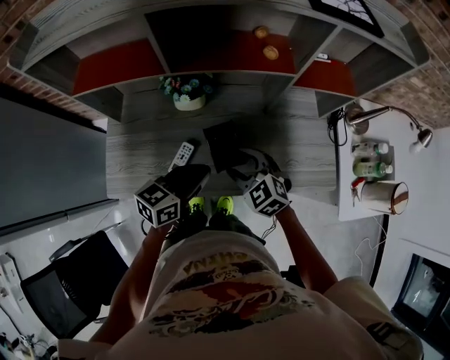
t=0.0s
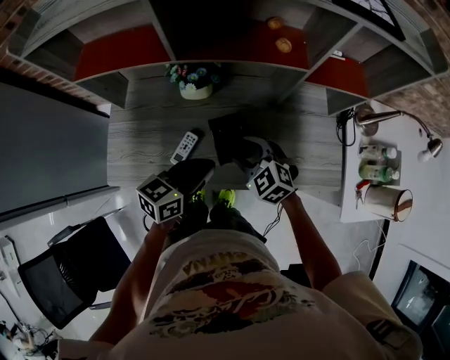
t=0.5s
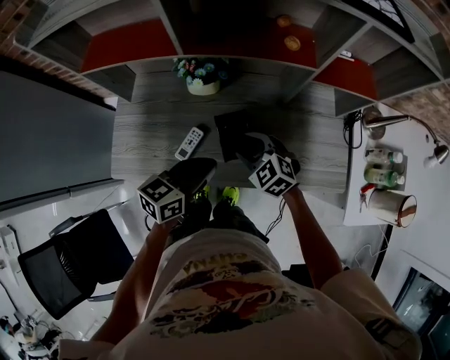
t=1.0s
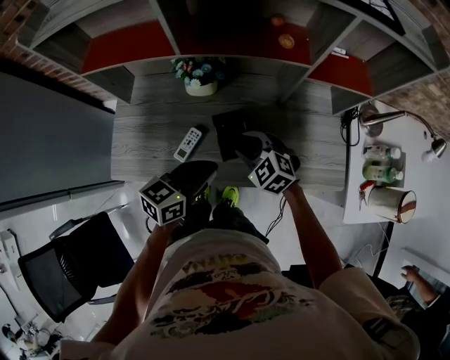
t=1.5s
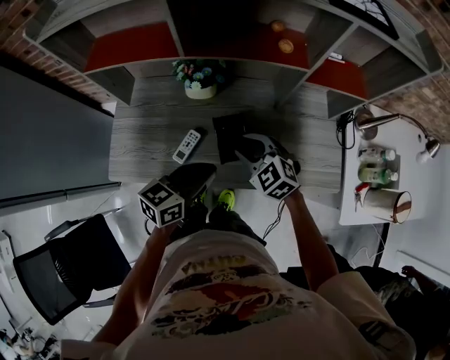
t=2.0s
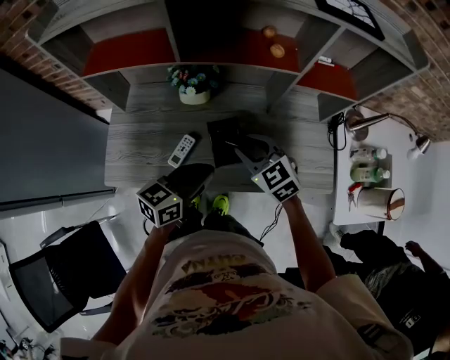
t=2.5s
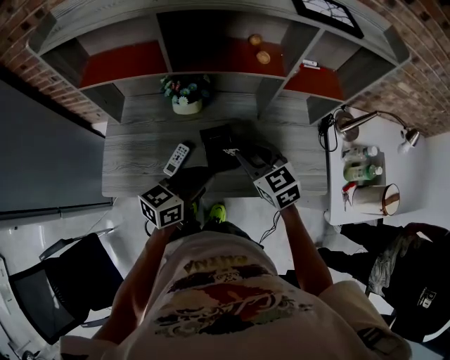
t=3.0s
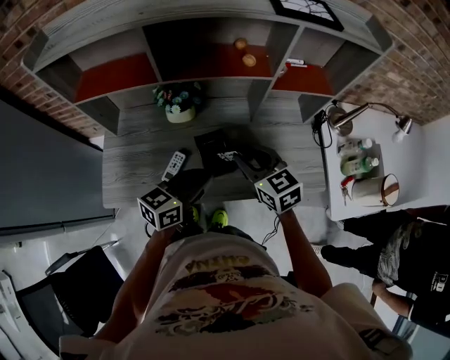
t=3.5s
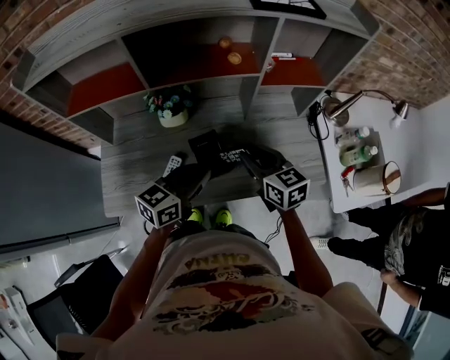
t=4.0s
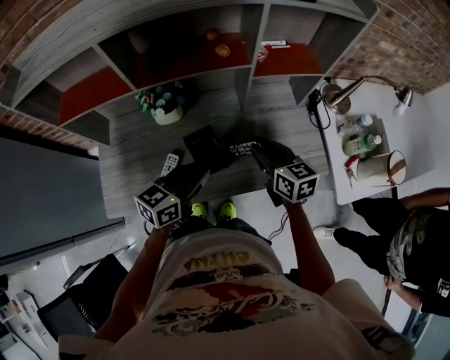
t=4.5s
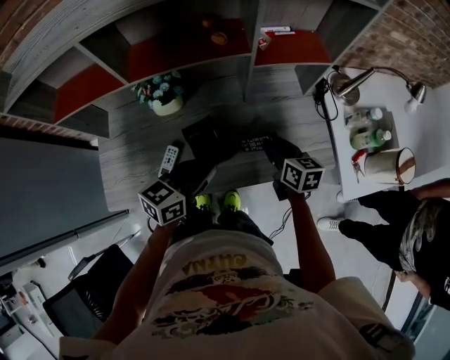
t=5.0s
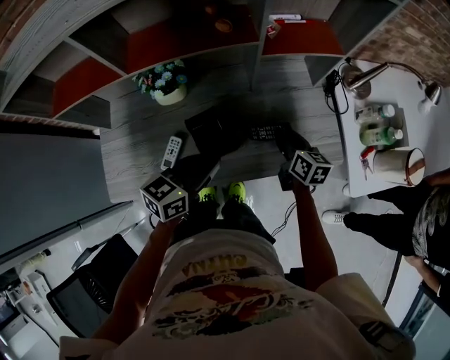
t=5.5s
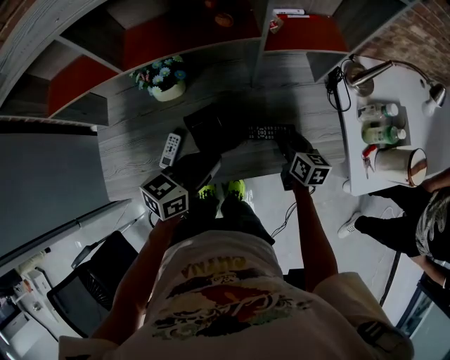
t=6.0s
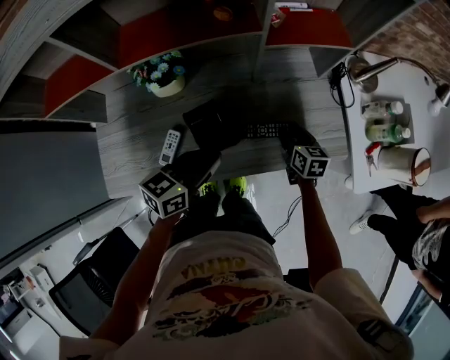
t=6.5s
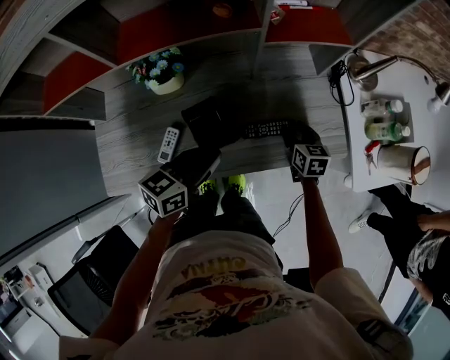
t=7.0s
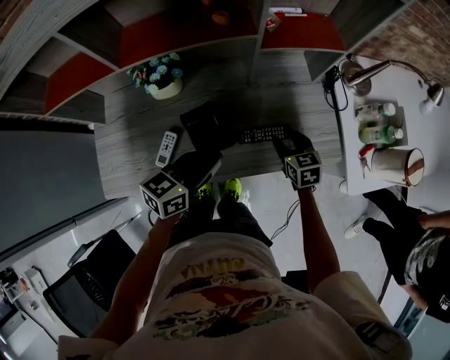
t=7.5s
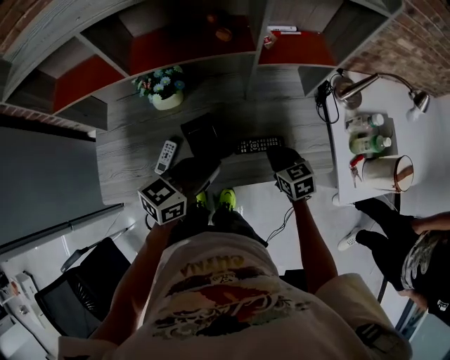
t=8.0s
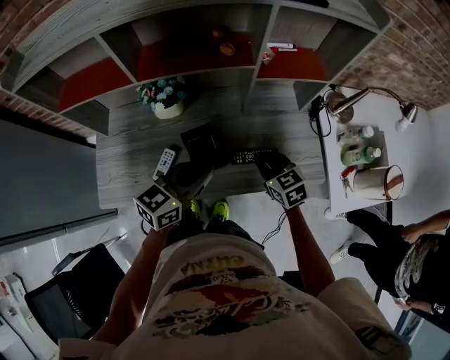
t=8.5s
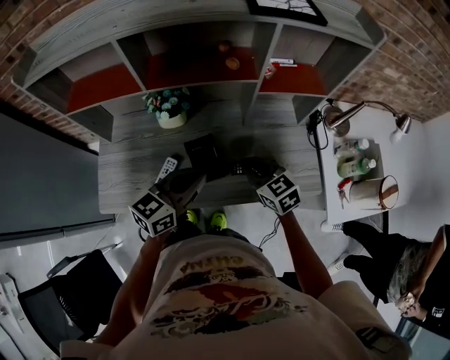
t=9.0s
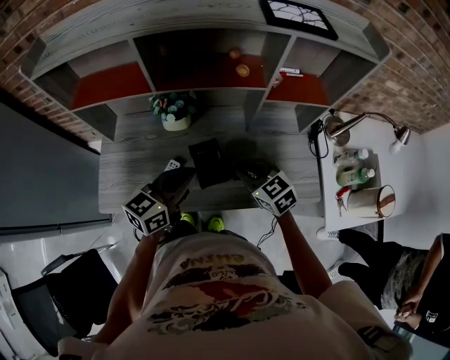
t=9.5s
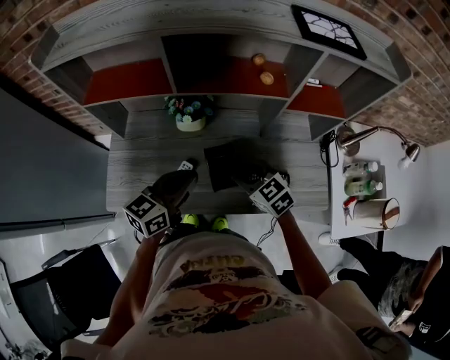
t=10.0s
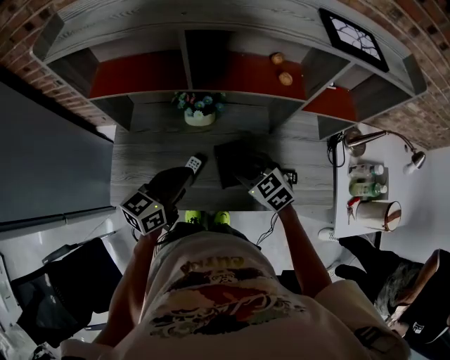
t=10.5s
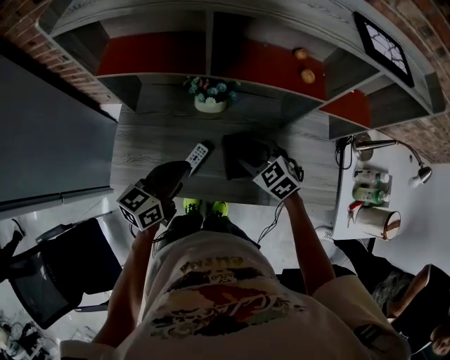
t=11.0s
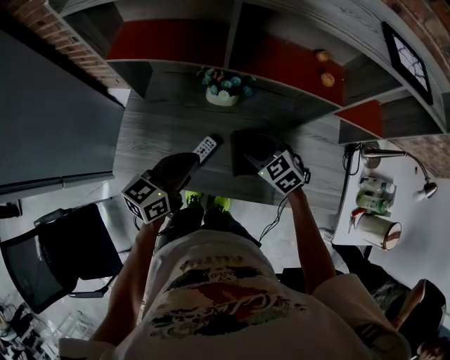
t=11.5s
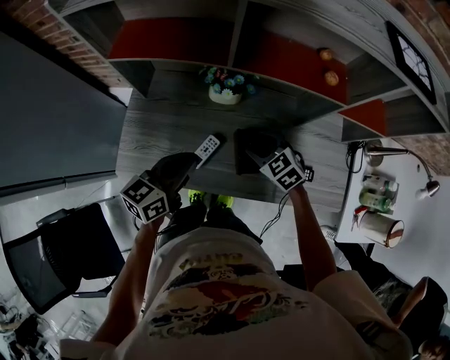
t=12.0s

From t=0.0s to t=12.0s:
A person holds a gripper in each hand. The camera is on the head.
From t=0.0s to t=2.0s: The grippers stay close to where they were, moving slightly.
From t=2.0s to t=4.0s: The left gripper shifts by roughly 5 cm, while the right gripper travels to the right and upward by roughly 10 cm, and twists approximately 40 degrees clockwise, seen from behind.
From t=4.0s to t=6.0s: The right gripper travels downward and to the right by some 20 cm, and swivels roughly 30 degrees. The left gripper travels downward by some 5 cm.
From t=6.0s to t=8.0s: The right gripper swivels some 30 degrees, and closes up.
From t=8.0s to t=10.0s: The left gripper is displaced to the left by roughly 15 cm, while the right gripper goes some 20 cm to the left and upward, changes its angle by about 30 degrees, and opens up.
From t=10.0s to t=12.0s: The left gripper shifts about 10 cm to the left. Meanwhile the right gripper is displaced downward and forward by approximately 10 cm.

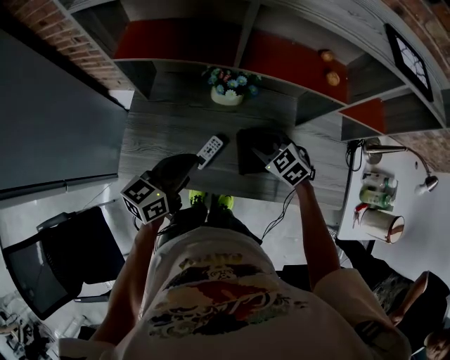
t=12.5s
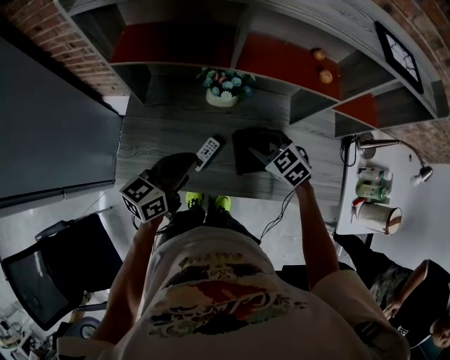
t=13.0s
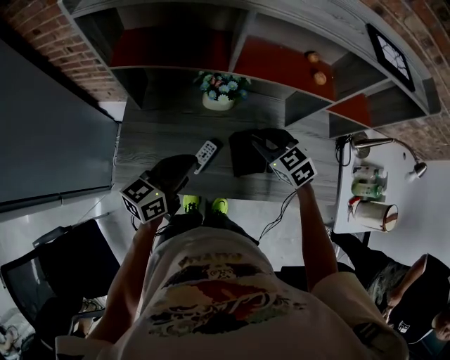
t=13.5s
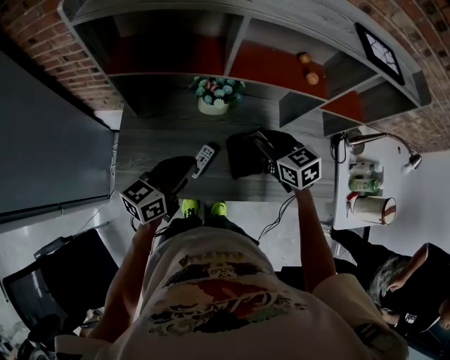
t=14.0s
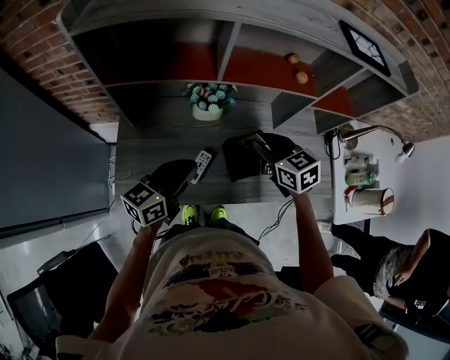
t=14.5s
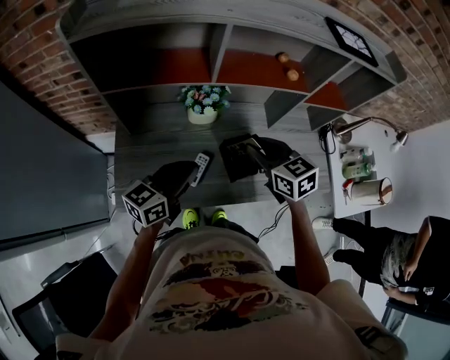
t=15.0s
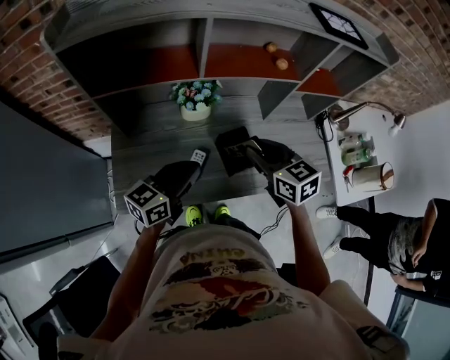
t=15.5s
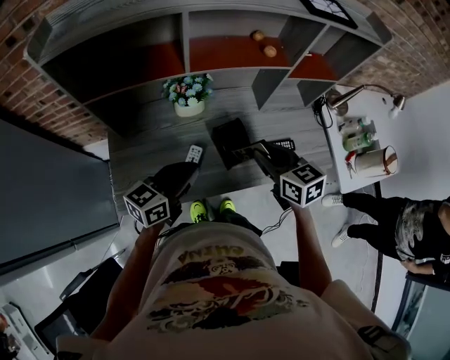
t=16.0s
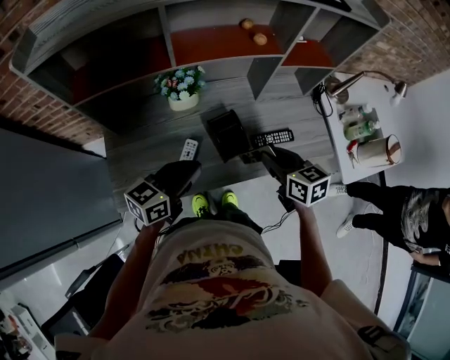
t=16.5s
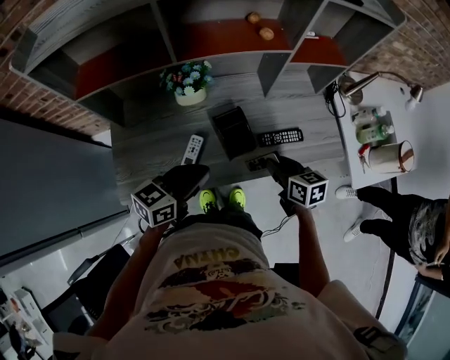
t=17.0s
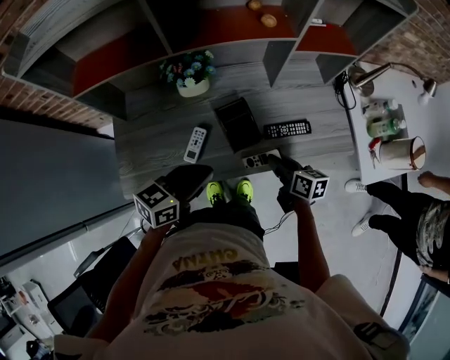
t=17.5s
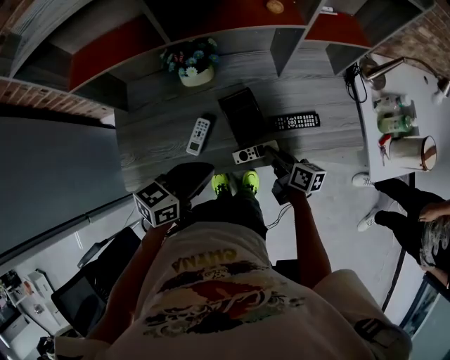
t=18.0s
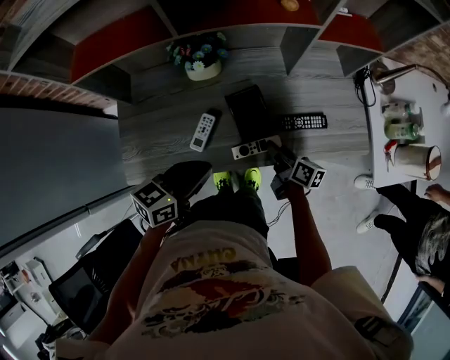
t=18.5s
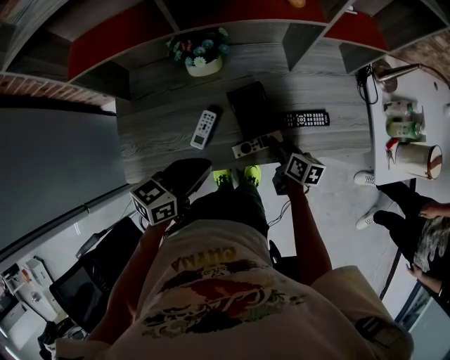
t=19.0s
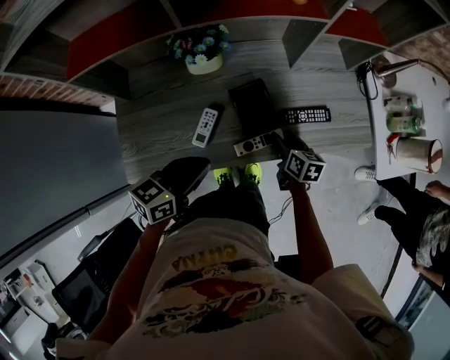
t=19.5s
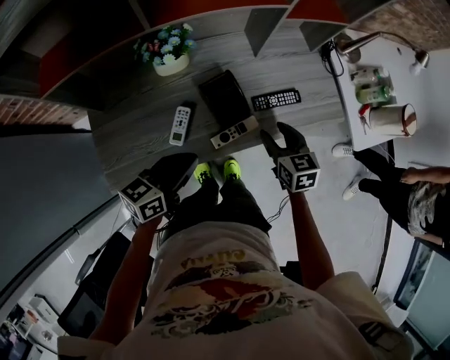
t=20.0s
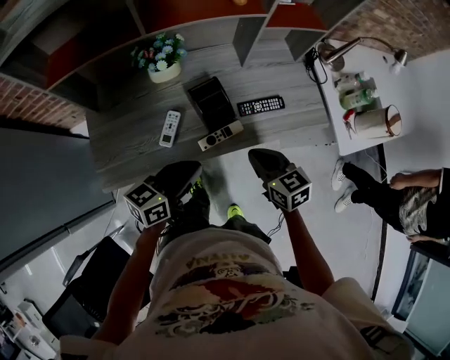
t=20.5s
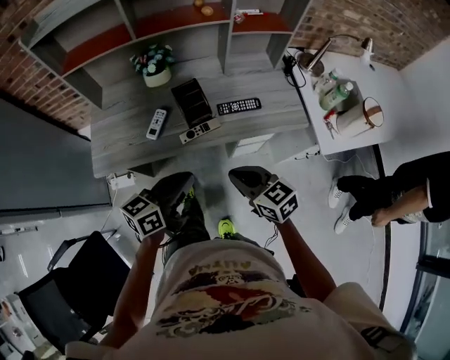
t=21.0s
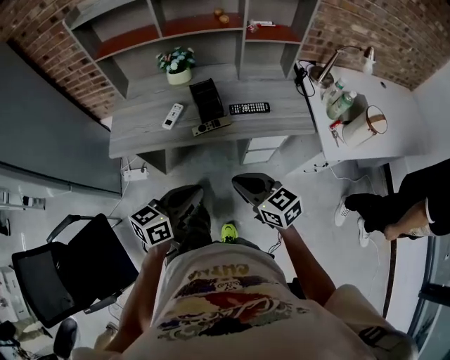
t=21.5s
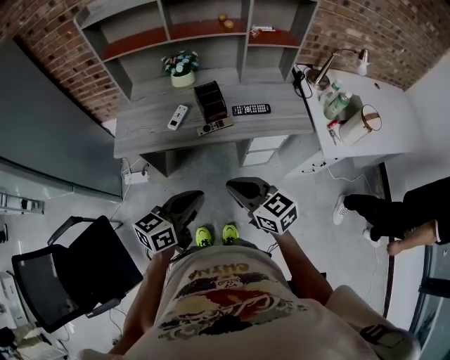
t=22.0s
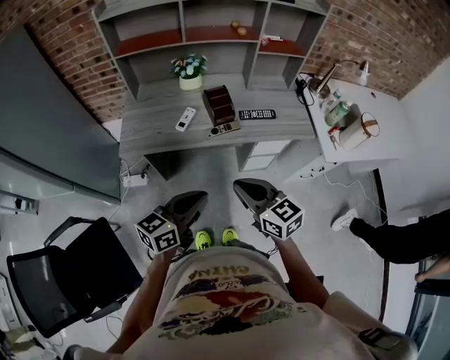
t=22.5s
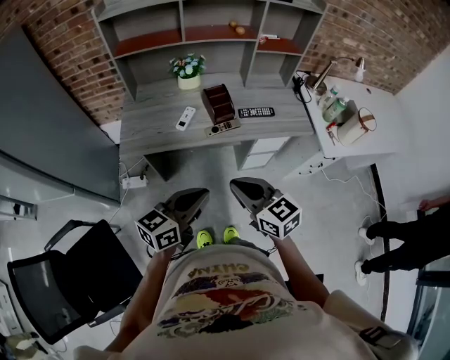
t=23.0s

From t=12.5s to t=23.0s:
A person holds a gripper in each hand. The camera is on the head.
From t=12.5s to t=14.5s: The right gripper travels upward by some 10 cm, and swivels roughly 30 degrees.
From t=14.5s to t=16.5s: The left gripper travels to the right by roughly 5 cm, while the right gripper shifts about 15 cm to the right and backward, and swivels some 30 degrees.
From t=16.5s to t=19.0s: The left gripper shifts by some 5 cm. Meanwhile the right gripper shifts some 20 cm downward, and changes its angle by some 30 degrees.
From t=19.0s to t=21.0s: The left gripper shifts about 20 cm to the right and backward, while the right gripper goes about 30 cm backward and upward, rolls counterclockwise, seen from behind, by roughly 40 degrees, and closes its fingers.
From t=21.0s to t=23.0s: The right gripper travels backward, to the left and upward by about 15 cm, while the left gripper goes roughly 15 cm backward.

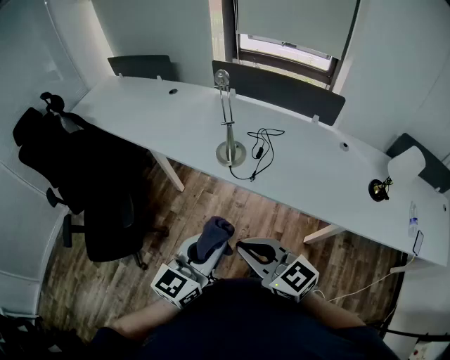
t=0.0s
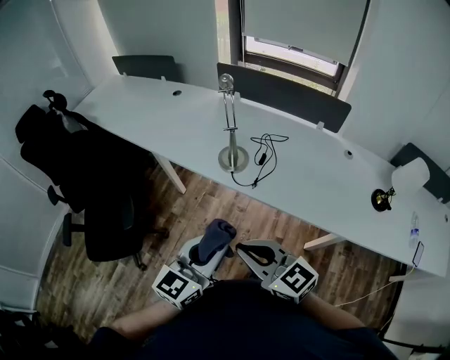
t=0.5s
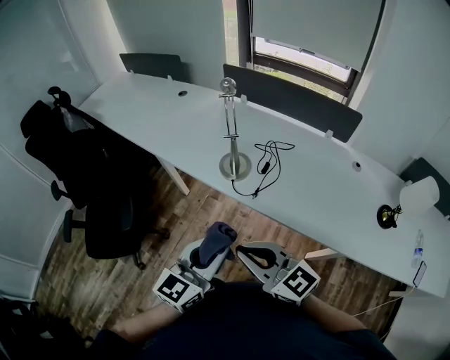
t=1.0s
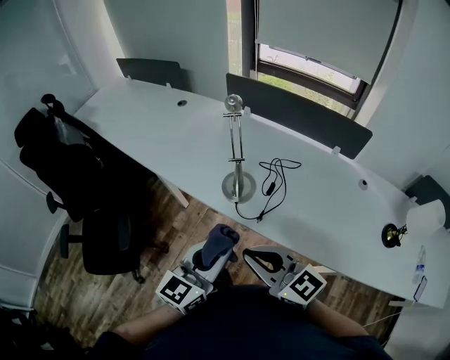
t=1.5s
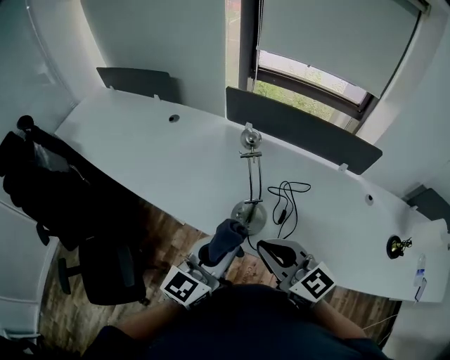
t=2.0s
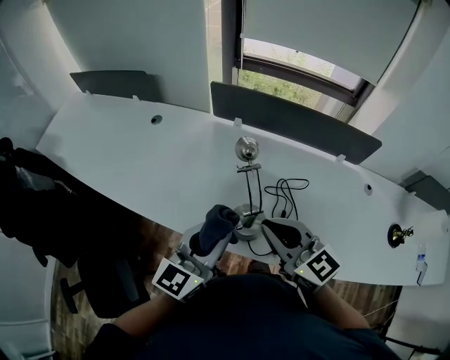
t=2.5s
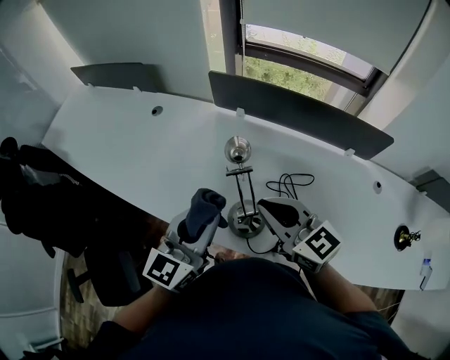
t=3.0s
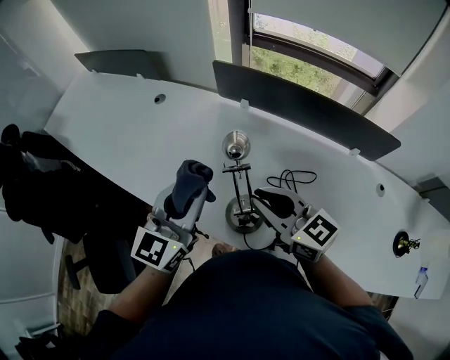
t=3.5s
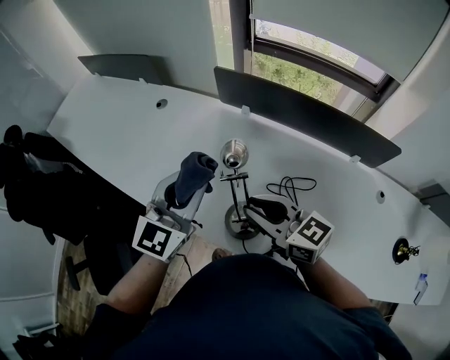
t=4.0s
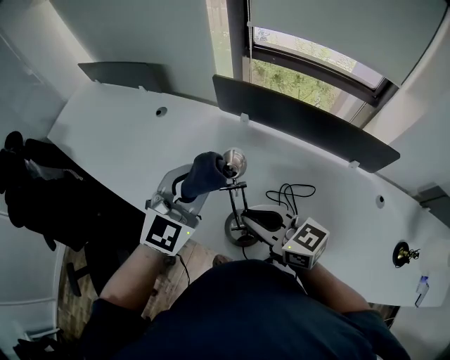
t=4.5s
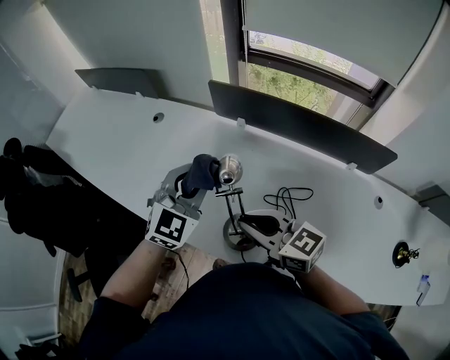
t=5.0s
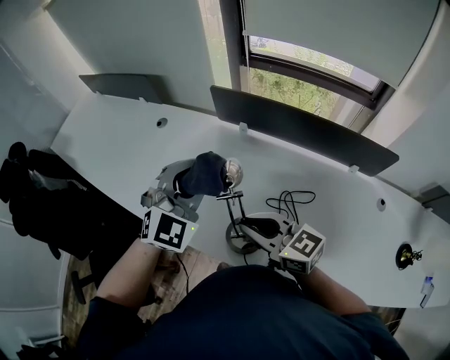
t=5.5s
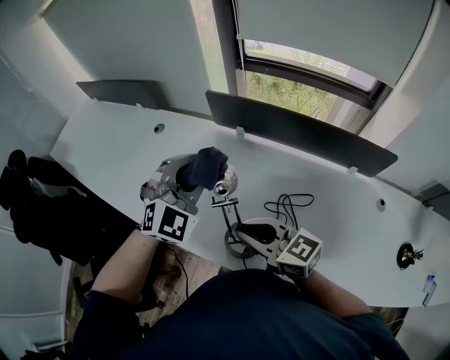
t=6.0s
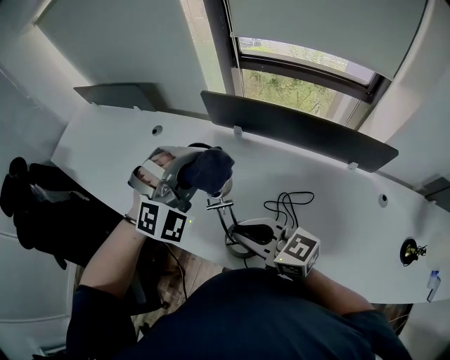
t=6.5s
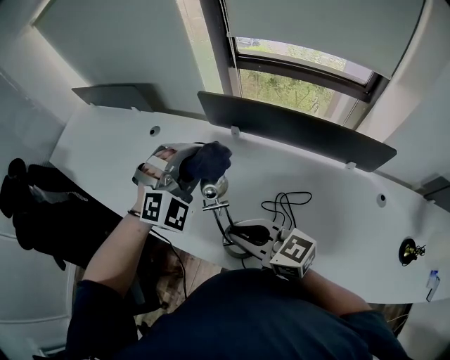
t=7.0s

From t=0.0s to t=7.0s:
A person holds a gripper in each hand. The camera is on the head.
From t=0.0s to t=2.0s: The grippers both shift forward by about 35 cm.
From t=2.0s to t=3.5s: Both grippers move forward, roughly 20 cm.
From t=3.5s to t=5.0s: The left gripper is displaced forward by roughly 10 cm, and swivels approximately 30 degrees.
From t=5.0s to t=7.0s: The left gripper travels to the right by some 5 cm, and turns by approximately 40 degrees.
